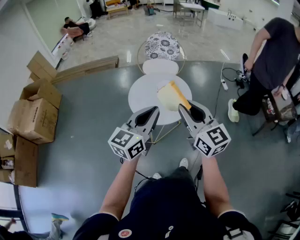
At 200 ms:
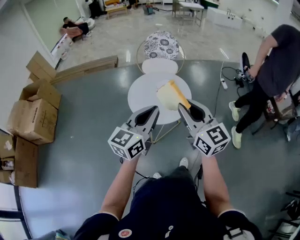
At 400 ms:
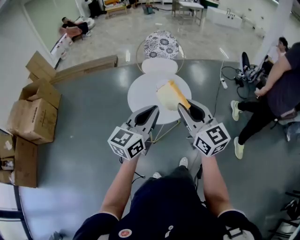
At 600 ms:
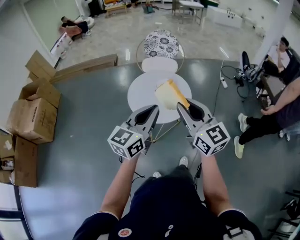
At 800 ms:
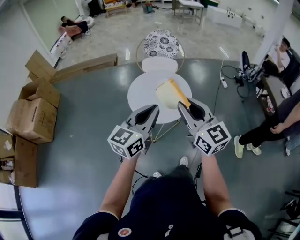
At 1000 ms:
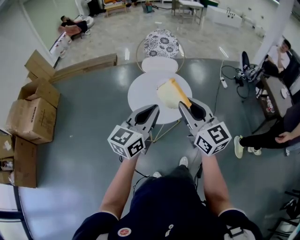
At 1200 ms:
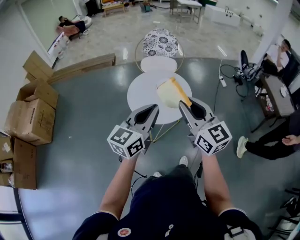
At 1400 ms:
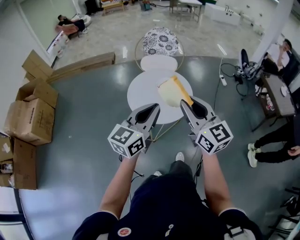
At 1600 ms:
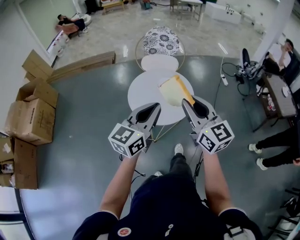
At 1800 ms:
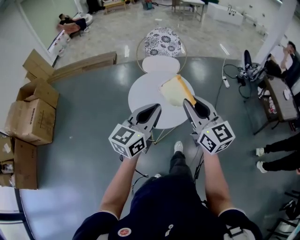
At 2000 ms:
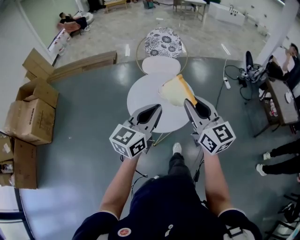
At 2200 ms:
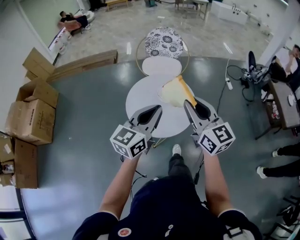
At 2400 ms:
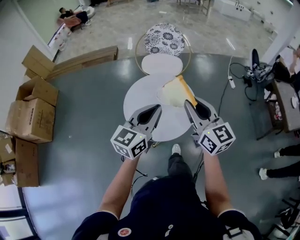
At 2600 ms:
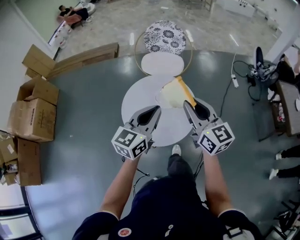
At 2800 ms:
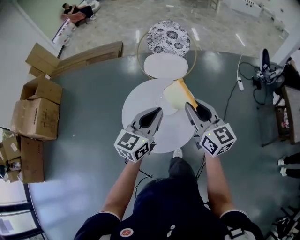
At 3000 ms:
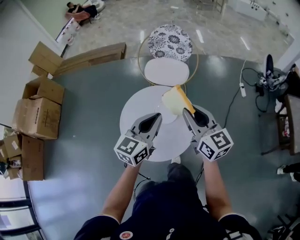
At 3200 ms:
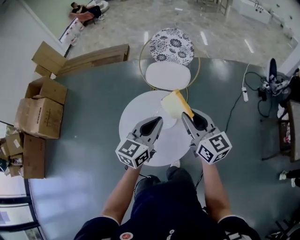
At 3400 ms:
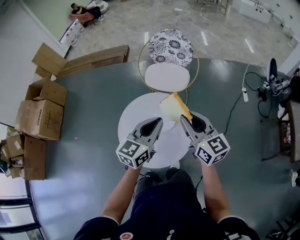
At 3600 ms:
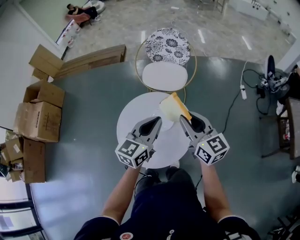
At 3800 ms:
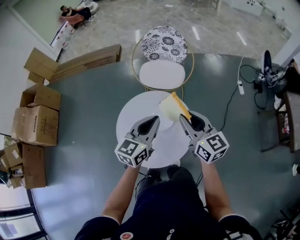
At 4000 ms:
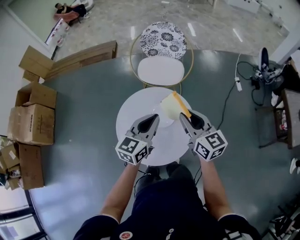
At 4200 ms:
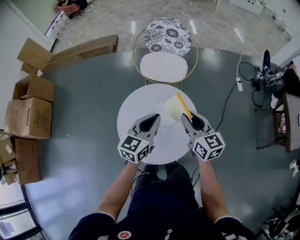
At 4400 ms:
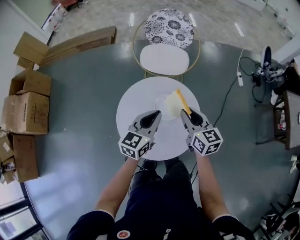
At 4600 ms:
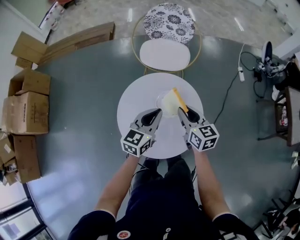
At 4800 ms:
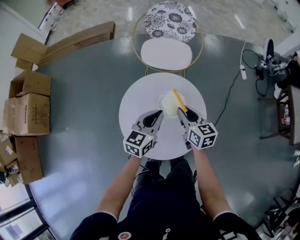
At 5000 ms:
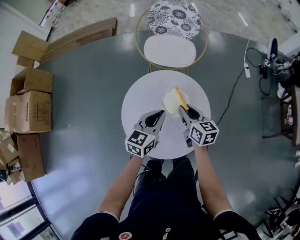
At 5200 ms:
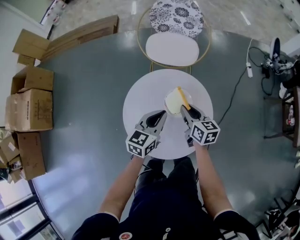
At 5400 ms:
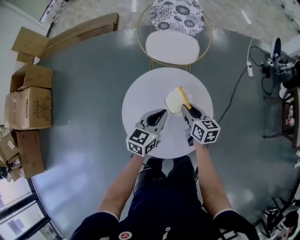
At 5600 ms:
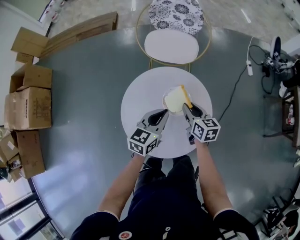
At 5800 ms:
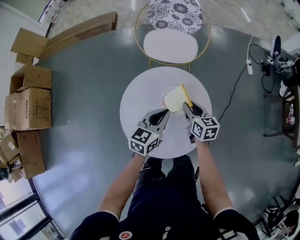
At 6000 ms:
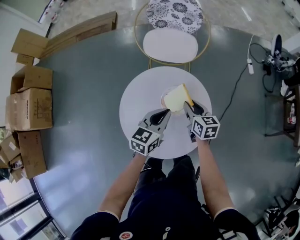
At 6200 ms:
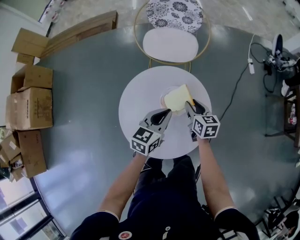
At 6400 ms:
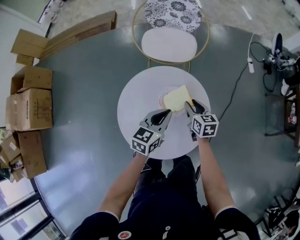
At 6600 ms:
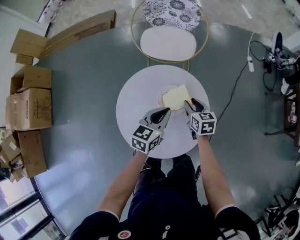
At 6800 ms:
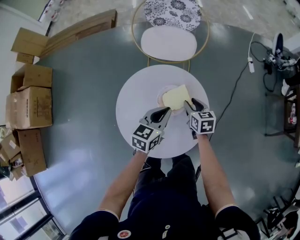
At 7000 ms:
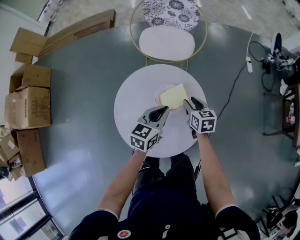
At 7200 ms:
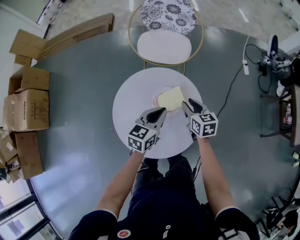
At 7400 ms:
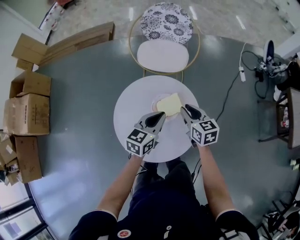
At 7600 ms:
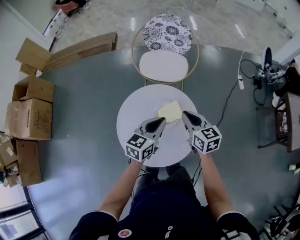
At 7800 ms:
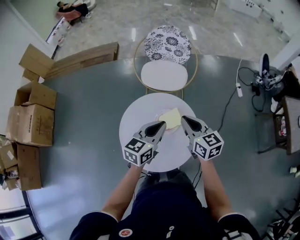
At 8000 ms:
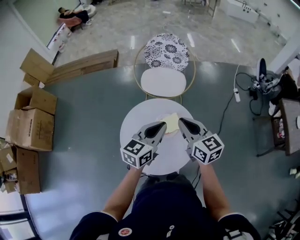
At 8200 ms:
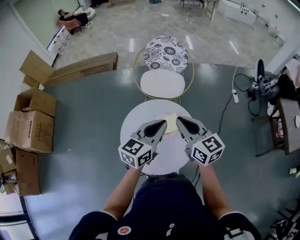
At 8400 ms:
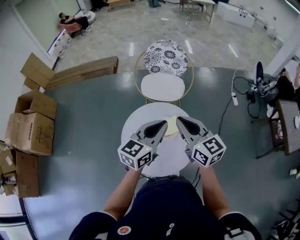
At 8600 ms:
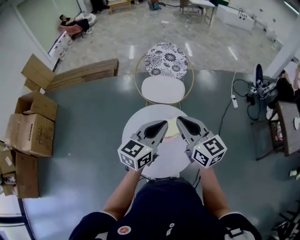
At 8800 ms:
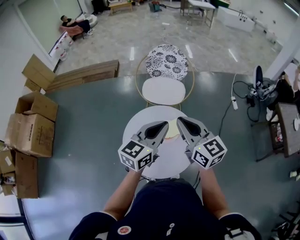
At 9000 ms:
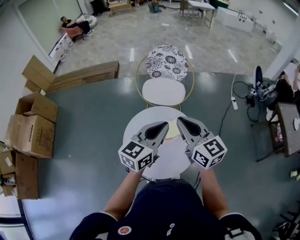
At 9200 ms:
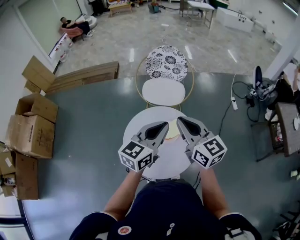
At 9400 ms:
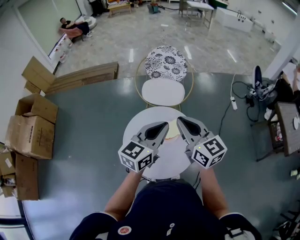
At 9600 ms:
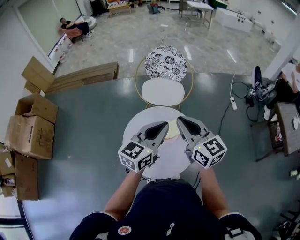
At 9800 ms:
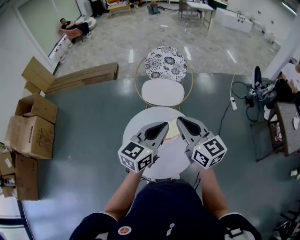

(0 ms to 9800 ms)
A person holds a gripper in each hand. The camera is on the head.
0 ms - 1400 ms: The grippers move only a little.
1400 ms - 2800 ms: Both grippers move forward, about 25 cm.
2800 ms - 4200 ms: The left gripper is displaced forward and downward by approximately 10 cm. The right gripper goes roughly 10 cm downward and forward.
4200 ms - 5600 ms: The right gripper shifts approximately 15 cm downward, and turns by approximately 20 degrees, while the left gripper shifts approximately 10 cm downward.
5600 ms - 7000 ms: The right gripper changes place by approximately 5 cm.
7000 ms - 8400 ms: Both grippers move upward, roughly 25 cm. The right gripper tilts its fingers roughly 30 degrees upward, and closes up. The left gripper turns by roughly 20 degrees.
8400 ms - 9800 ms: The grippers make only small movements.

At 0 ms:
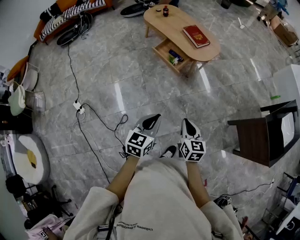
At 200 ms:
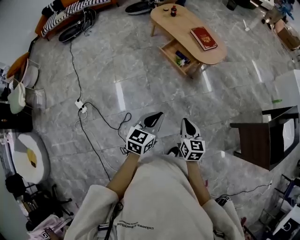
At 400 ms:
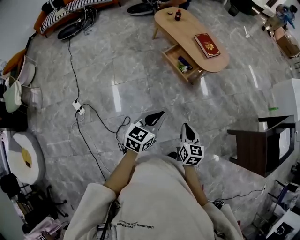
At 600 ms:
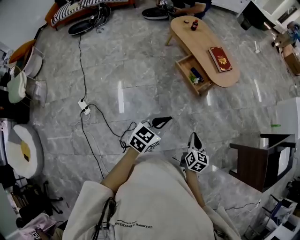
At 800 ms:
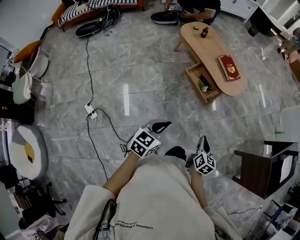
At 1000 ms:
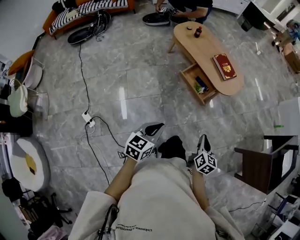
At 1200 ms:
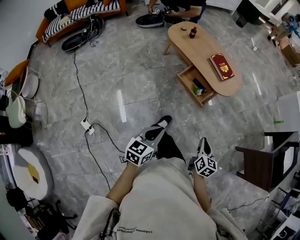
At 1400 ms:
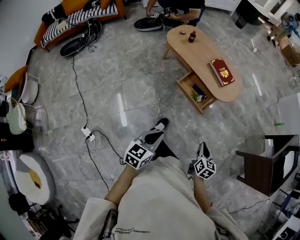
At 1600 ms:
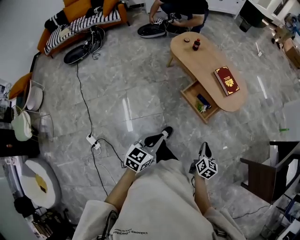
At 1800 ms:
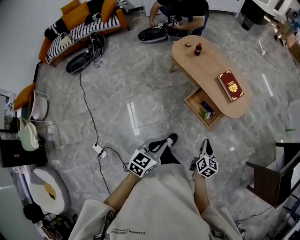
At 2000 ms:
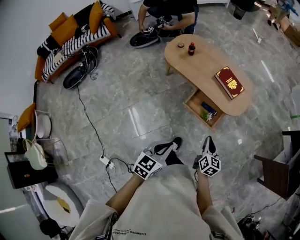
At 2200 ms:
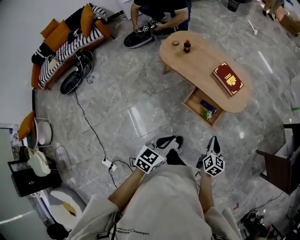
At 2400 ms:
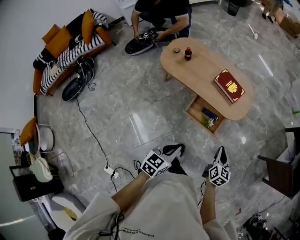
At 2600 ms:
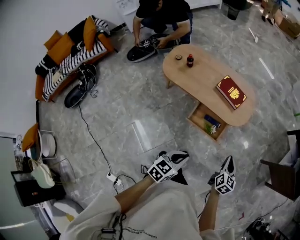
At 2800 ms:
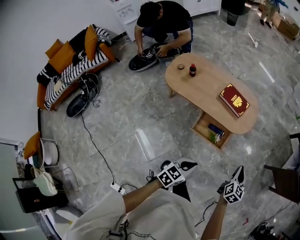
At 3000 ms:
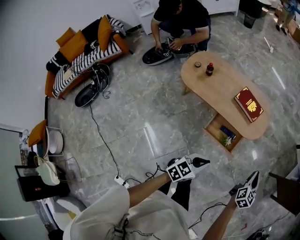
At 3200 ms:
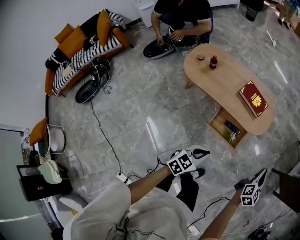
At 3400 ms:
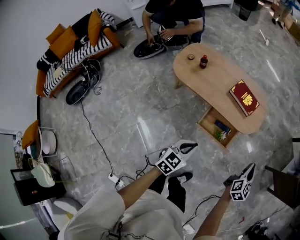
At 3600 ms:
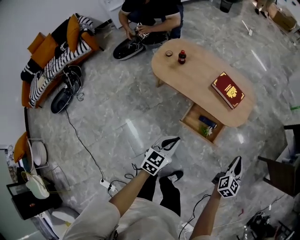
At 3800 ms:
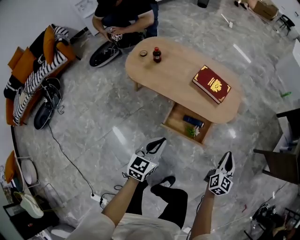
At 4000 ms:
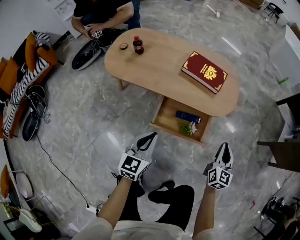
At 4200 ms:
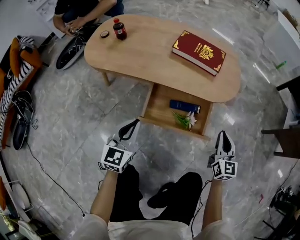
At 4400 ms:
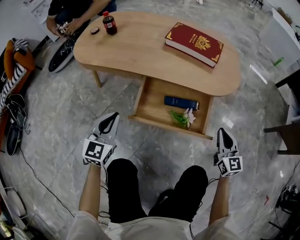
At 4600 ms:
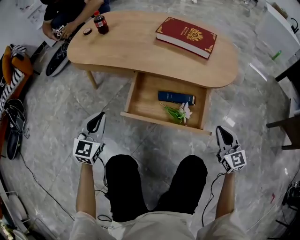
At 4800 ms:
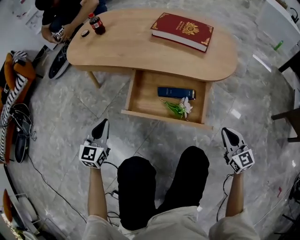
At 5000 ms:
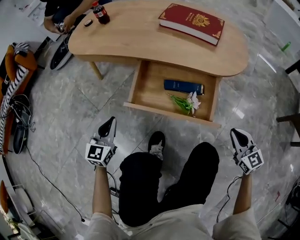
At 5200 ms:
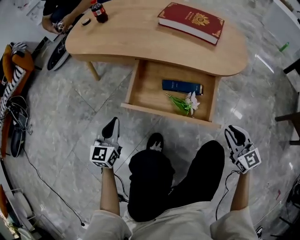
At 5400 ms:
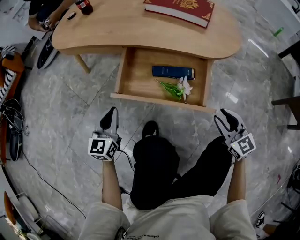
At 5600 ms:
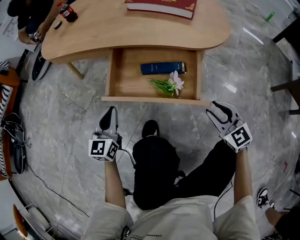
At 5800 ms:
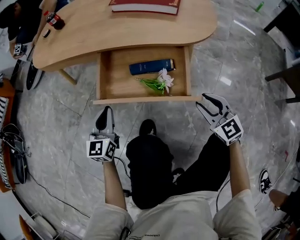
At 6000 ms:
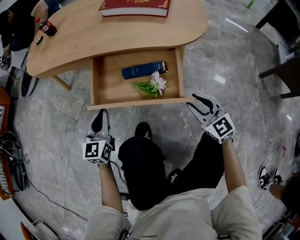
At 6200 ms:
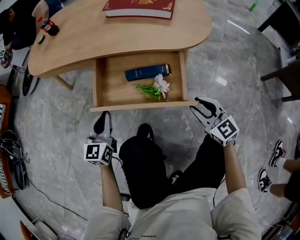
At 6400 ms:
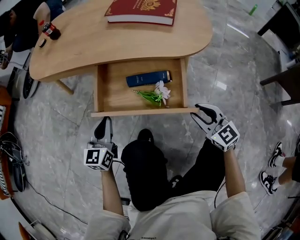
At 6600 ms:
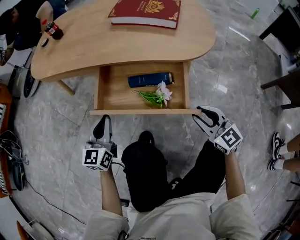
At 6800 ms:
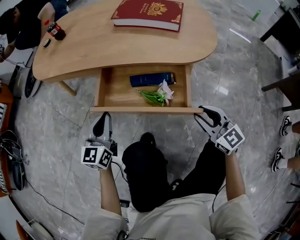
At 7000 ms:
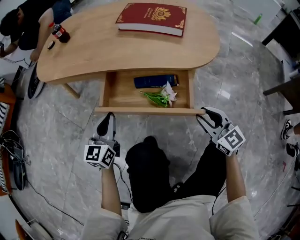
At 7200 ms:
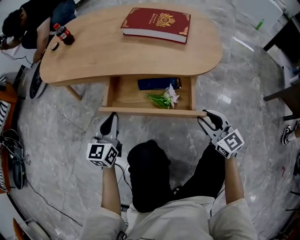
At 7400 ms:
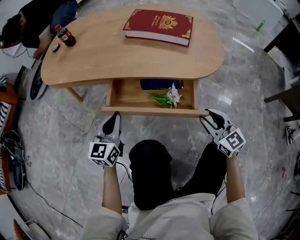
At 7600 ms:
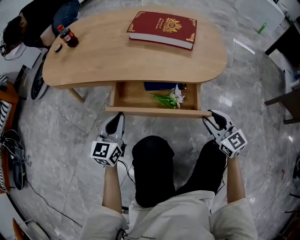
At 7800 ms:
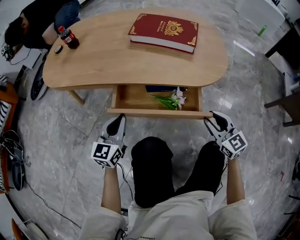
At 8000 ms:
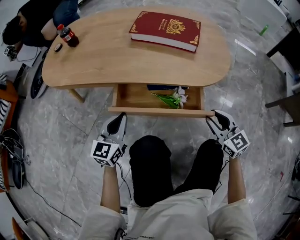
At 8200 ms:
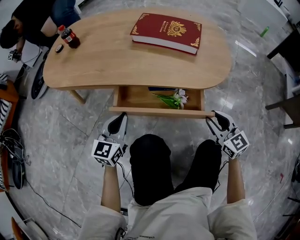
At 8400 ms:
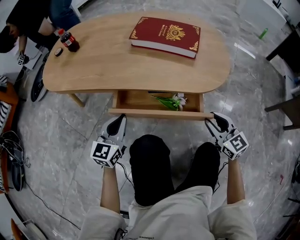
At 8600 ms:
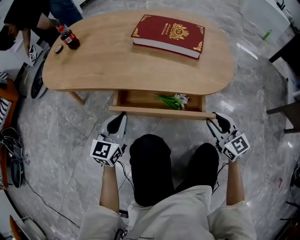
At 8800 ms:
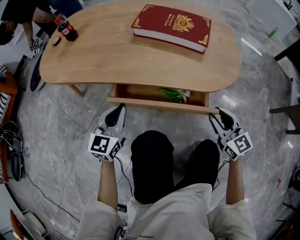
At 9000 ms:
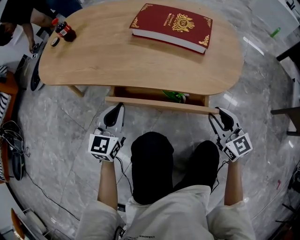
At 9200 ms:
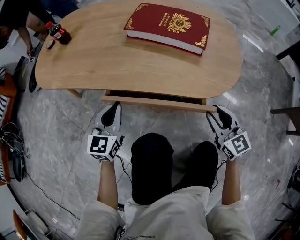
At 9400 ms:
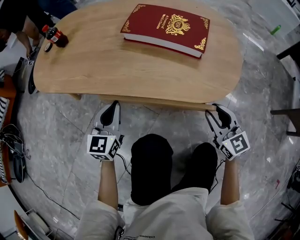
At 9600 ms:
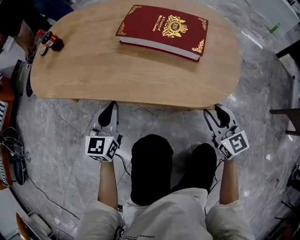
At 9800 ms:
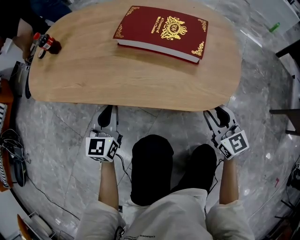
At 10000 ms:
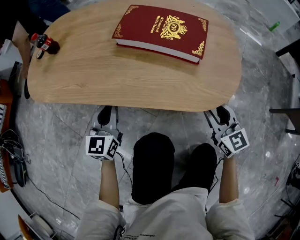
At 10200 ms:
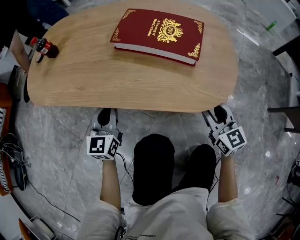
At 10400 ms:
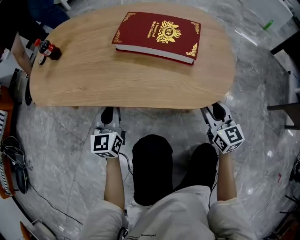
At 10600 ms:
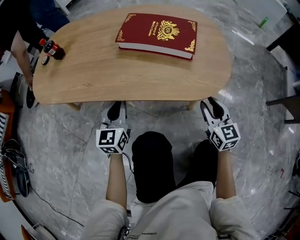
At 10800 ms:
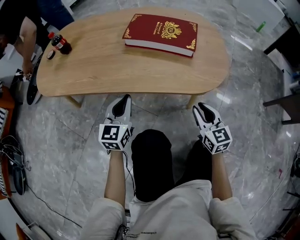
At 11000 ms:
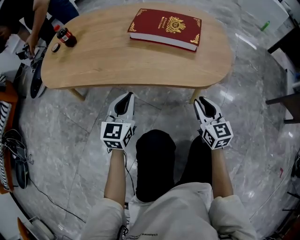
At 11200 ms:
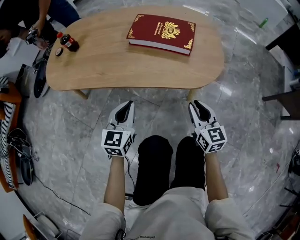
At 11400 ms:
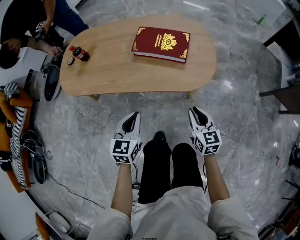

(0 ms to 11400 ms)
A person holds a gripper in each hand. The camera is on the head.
0 ms - 1400 ms: The right gripper is displaced forward and to the left by approximately 25 cm, and rotates some 20 degrees; the left gripper goes approximately 35 cm to the left and forward.
1400 ms - 2800 ms: The left gripper moves roughly 25 cm, and swivels approximately 40 degrees; the right gripper changes place by roughly 25 cm, and changes its angle by some 30 degrees.
2800 ms - 4200 ms: The left gripper heads downward, to the left and forward, covering approximately 40 cm, and turns by approximately 30 degrees. The right gripper is displaced downward by about 35 cm, and changes its angle by some 20 degrees.
4200 ms - 5600 ms: The two grippers go roughly 20 cm downward. The right gripper changes its angle by roughly 40 degrees, and opens up.
5600 ms - 7200 ms: The grippers both shift forward by some 5 cm.
7200 ms - 8600 ms: Both grippers move forward, approximately 5 cm.
8600 ms - 10000 ms: Both grippers move forward, some 10 cm.
10000 ms - 11400 ms: The left gripper shifts approximately 20 cm upward and backward. The right gripper shifts some 20 cm upward, backward and to the left, and turns by roughly 20 degrees.

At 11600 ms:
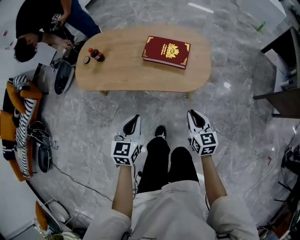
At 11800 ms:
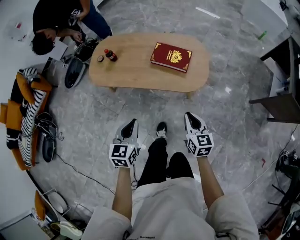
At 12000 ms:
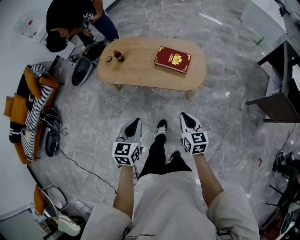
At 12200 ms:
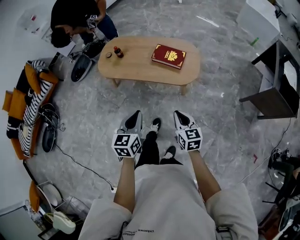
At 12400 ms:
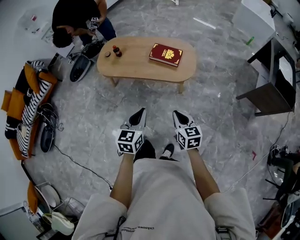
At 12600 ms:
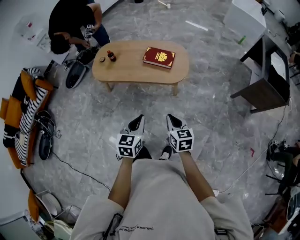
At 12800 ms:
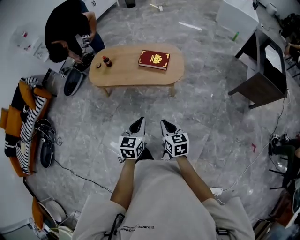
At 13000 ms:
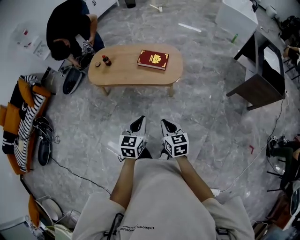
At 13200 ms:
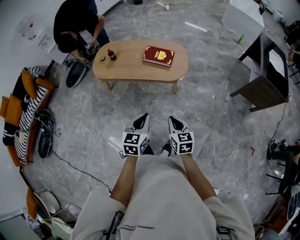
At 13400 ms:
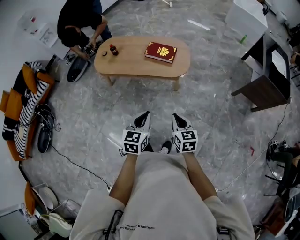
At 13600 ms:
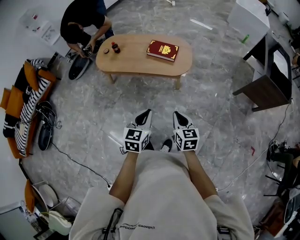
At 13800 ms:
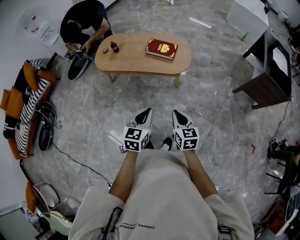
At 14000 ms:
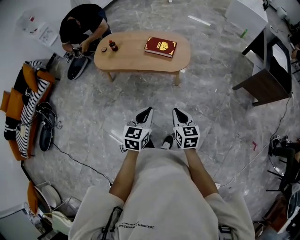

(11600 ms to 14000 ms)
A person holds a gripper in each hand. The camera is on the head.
11600 ms - 12800 ms: The left gripper goes approximately 35 cm backward and upward, while the right gripper heads upward and backward, covering some 35 cm.
12800 ms - 14000 ms: The left gripper moves about 5 cm. Meanwhile the right gripper moves approximately 5 cm.
